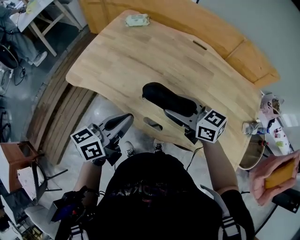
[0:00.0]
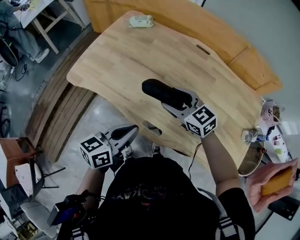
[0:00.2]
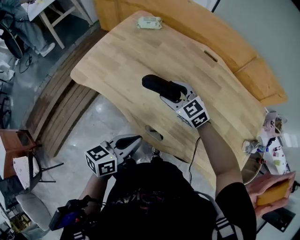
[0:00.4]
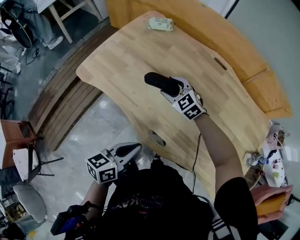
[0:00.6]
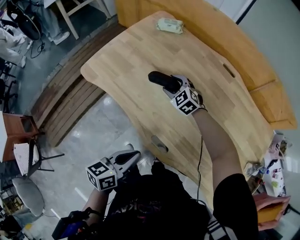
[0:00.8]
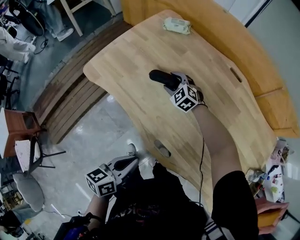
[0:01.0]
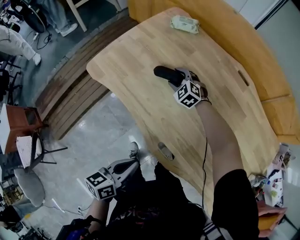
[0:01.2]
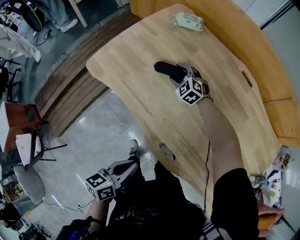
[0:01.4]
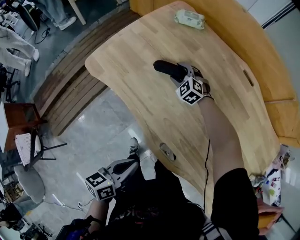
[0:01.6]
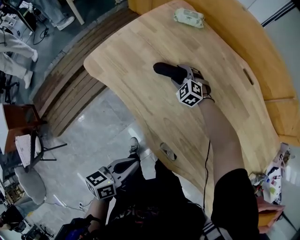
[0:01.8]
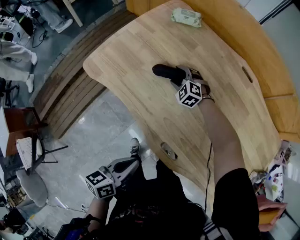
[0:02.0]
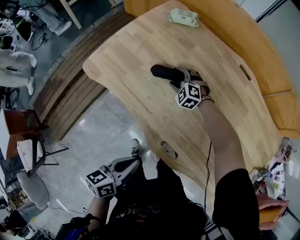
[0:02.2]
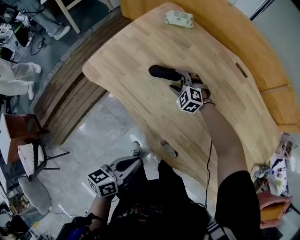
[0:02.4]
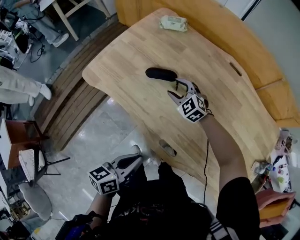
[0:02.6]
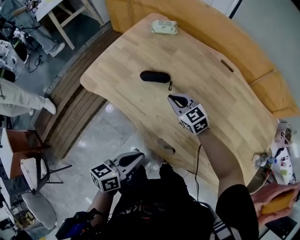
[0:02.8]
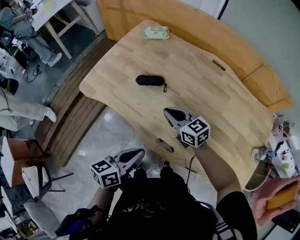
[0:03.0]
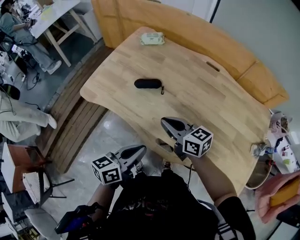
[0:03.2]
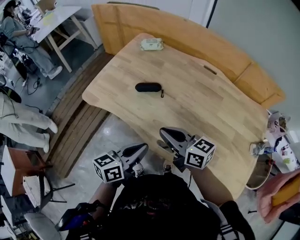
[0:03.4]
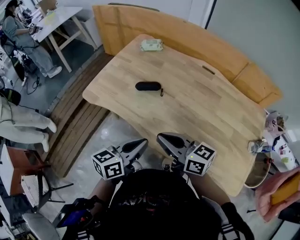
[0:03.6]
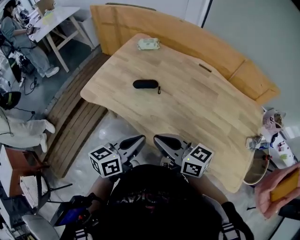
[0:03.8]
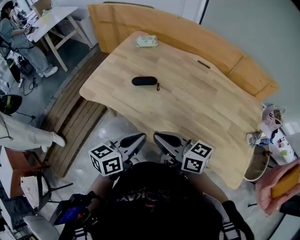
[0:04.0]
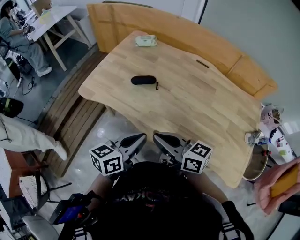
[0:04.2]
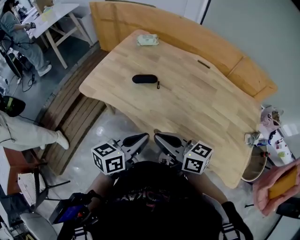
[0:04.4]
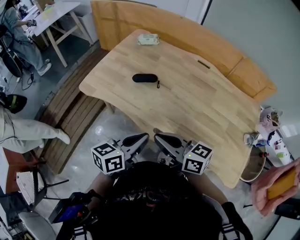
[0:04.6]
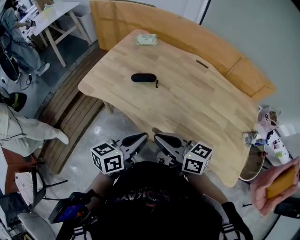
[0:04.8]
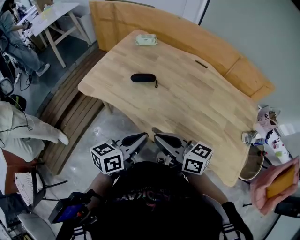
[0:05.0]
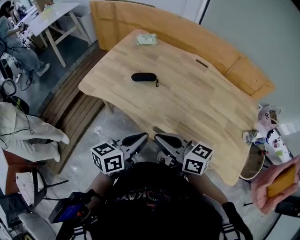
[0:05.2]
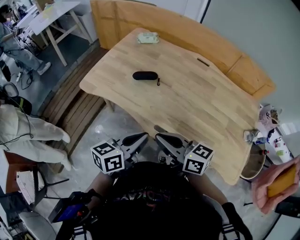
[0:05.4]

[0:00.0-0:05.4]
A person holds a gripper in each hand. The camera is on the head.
0:00.0 to 0:01.4: The right gripper is displaced forward, downward and to the left by some 40 cm, and rolls counterclockwise, seen from behind, by about 50 degrees. Meanwhile the left gripper shifts approximately 10 cm downward and backward, and turns by roughly 30 degrees.
0:01.4 to 0:02.8: The right gripper goes roughly 20 cm backward and upward, changes its angle by some 40 degrees, and closes.
0:02.8 to 0:04.0: The right gripper heads backward and upward, covering about 30 cm, and turns by approximately 40 degrees. The left gripper shifts roughly 5 cm upward.
0:04.0 to 0:05.4: The grippers stay close to where they were, moving slightly.

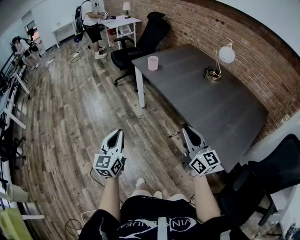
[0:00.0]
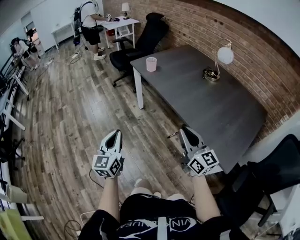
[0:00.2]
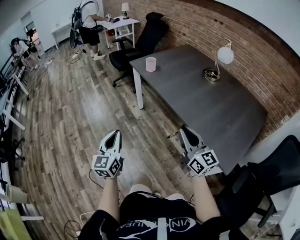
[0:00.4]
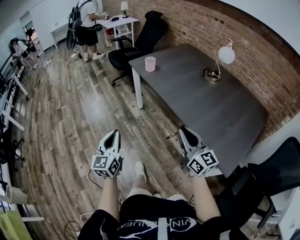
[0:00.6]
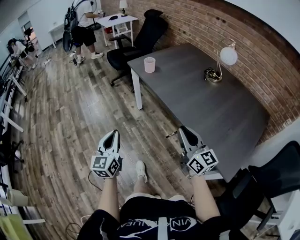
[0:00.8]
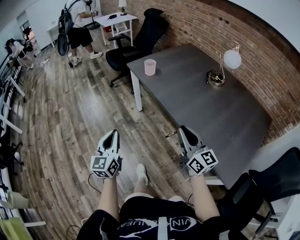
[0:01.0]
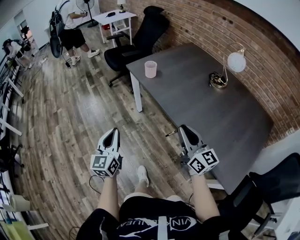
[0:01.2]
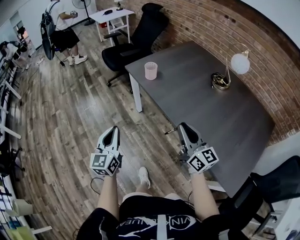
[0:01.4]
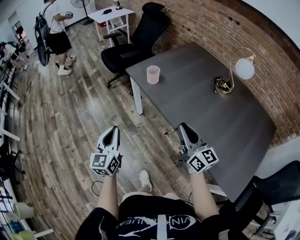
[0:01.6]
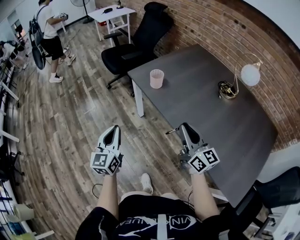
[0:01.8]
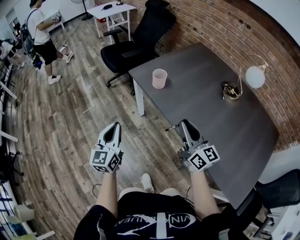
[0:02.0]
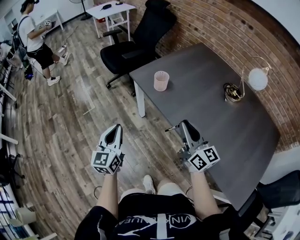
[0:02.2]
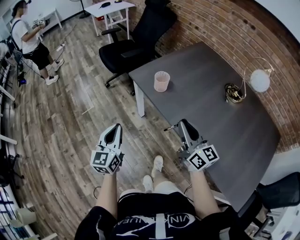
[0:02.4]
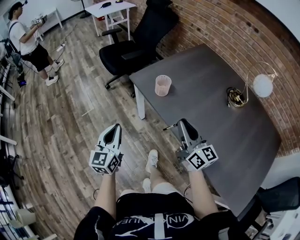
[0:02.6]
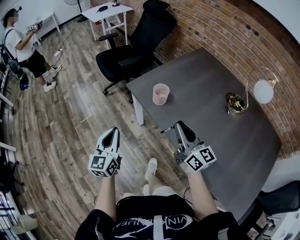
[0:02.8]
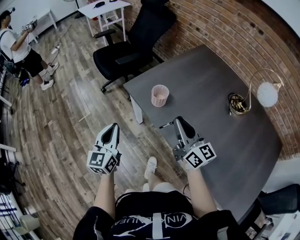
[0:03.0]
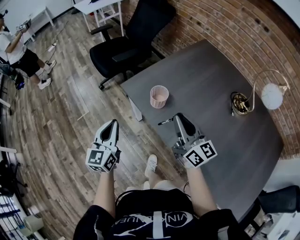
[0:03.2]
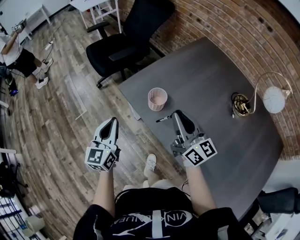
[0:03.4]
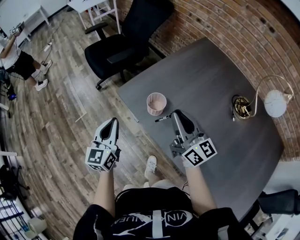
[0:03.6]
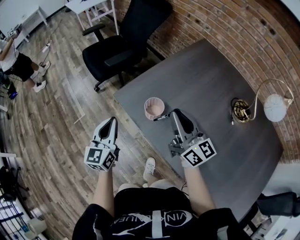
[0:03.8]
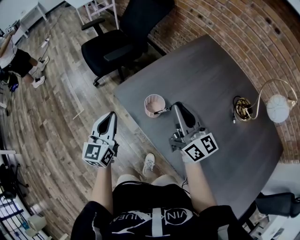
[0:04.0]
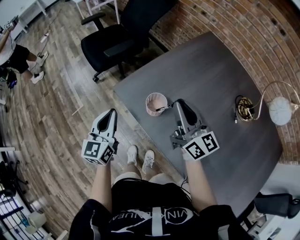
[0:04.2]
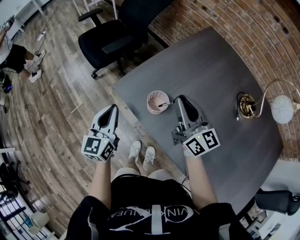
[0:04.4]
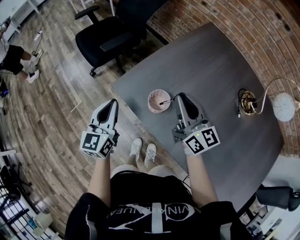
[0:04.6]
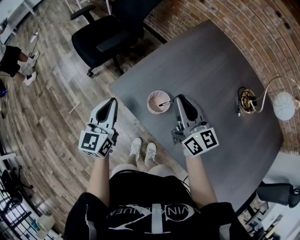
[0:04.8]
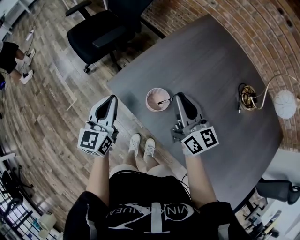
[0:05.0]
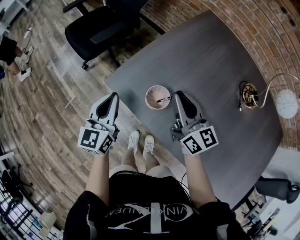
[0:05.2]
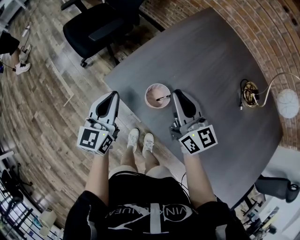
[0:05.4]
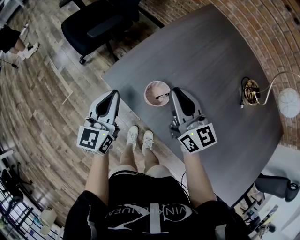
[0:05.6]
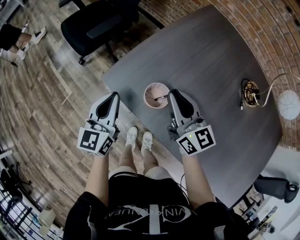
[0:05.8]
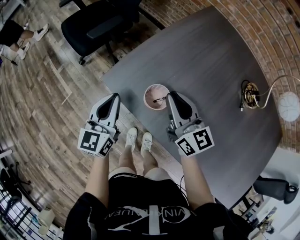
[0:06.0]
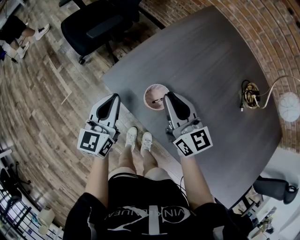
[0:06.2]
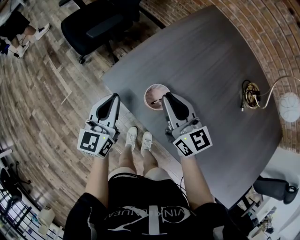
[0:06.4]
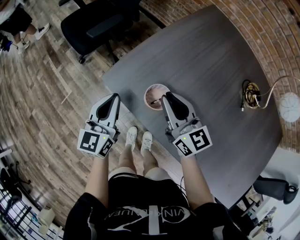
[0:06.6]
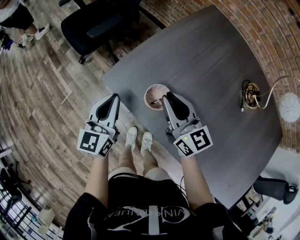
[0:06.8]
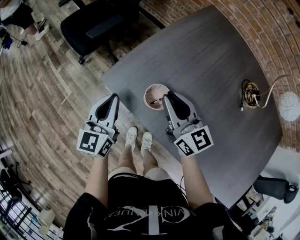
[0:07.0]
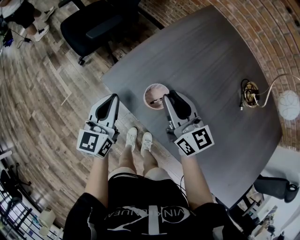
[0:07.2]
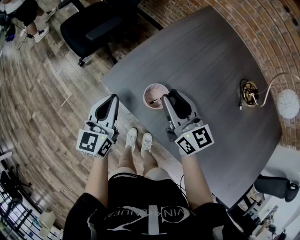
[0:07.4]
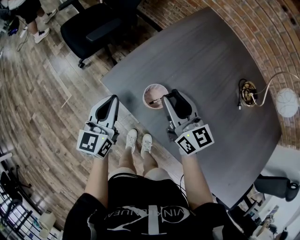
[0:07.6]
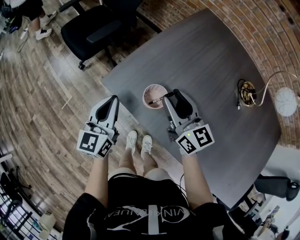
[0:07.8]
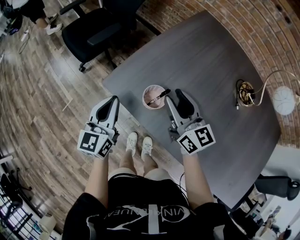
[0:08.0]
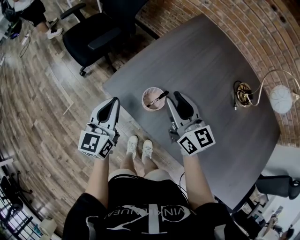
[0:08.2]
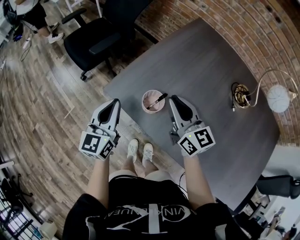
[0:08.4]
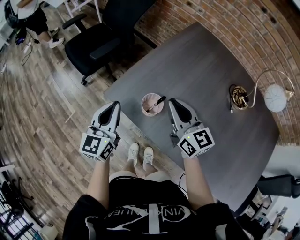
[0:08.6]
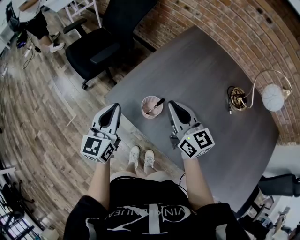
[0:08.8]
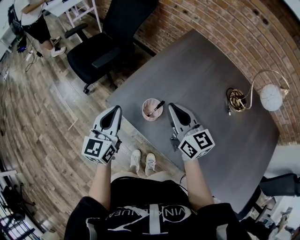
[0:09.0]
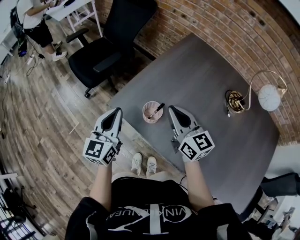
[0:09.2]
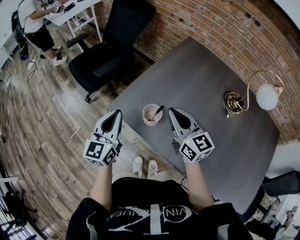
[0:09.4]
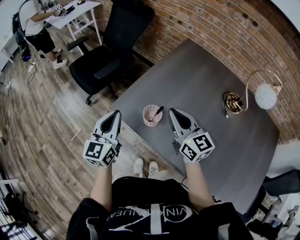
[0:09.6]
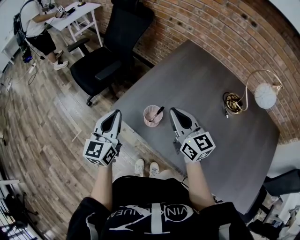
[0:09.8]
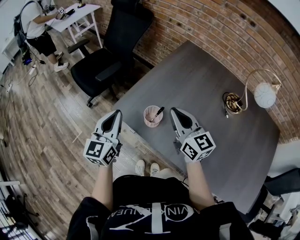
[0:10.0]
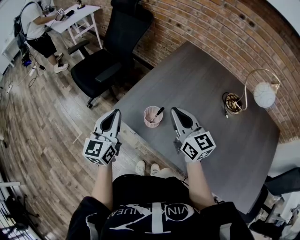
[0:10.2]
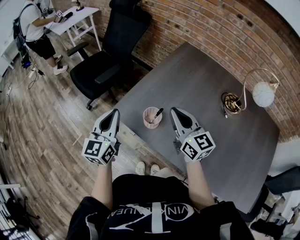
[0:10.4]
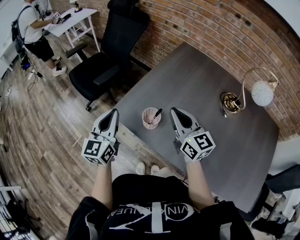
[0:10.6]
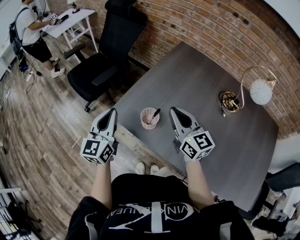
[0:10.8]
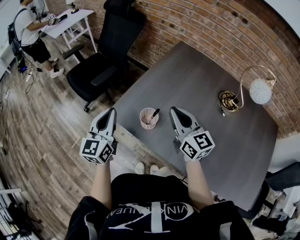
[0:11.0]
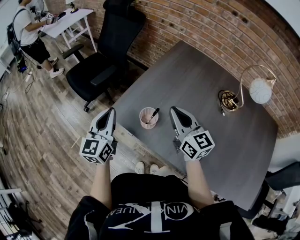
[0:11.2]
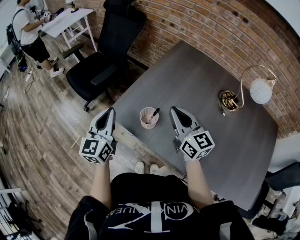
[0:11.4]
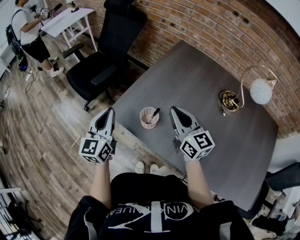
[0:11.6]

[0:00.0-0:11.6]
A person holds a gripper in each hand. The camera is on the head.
0:00.0 to 0:01.4: Both grippers travel together forward, some 25 cm.
0:01.4 to 0:02.8: The two grippers go roughly 25 cm forward.
0:02.8 to 0:04.4: Both grippers move forward, approximately 25 cm.
0:04.4 to 0:05.8: The left gripper shifts by some 5 cm, while the right gripper shifts about 5 cm downward.
0:05.8 to 0:07.2: There are only small adjustments of the grippers.
0:07.2 to 0:08.8: The grippers both shift upward by some 5 cm. The right gripper opens, then closes again.
0:08.8 to 0:10.2: The left gripper ends up roughly 5 cm from where it was.
0:10.2 to 0:11.6: The grippers make only small movements.

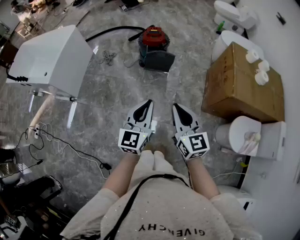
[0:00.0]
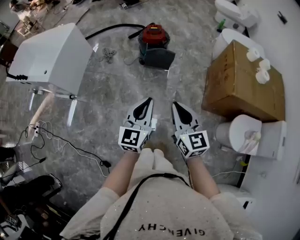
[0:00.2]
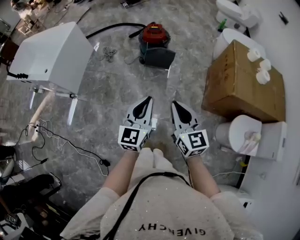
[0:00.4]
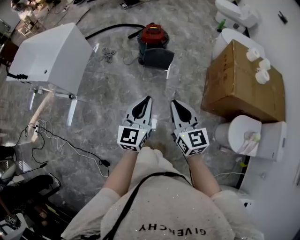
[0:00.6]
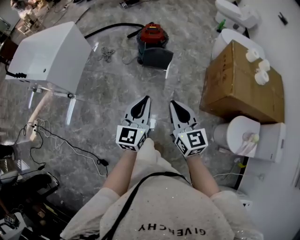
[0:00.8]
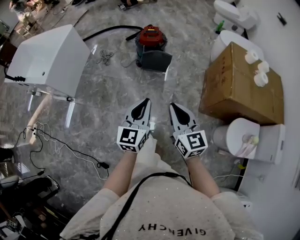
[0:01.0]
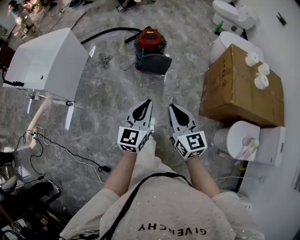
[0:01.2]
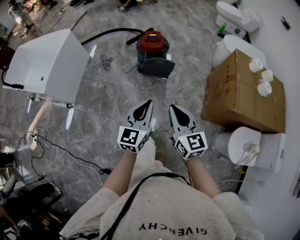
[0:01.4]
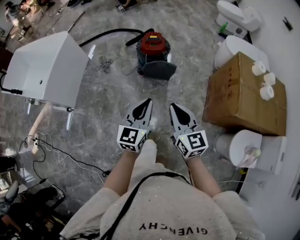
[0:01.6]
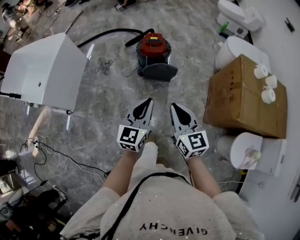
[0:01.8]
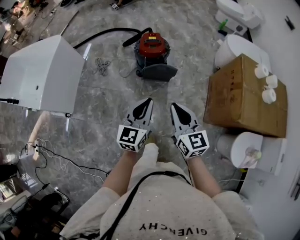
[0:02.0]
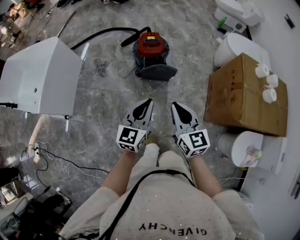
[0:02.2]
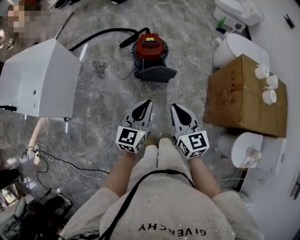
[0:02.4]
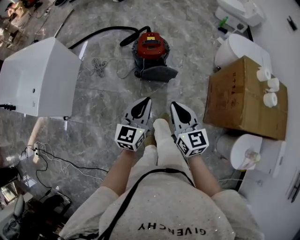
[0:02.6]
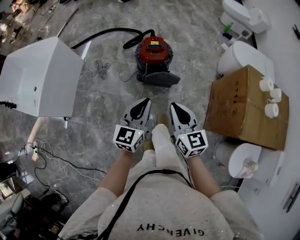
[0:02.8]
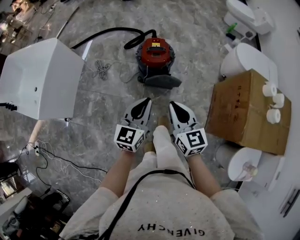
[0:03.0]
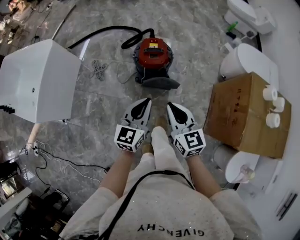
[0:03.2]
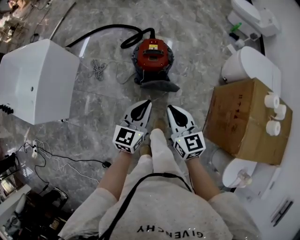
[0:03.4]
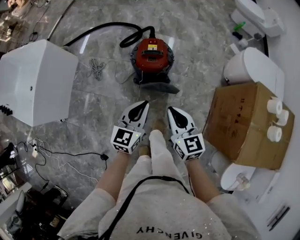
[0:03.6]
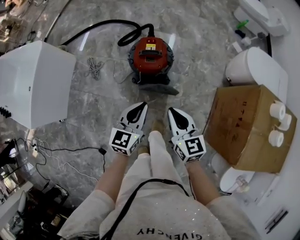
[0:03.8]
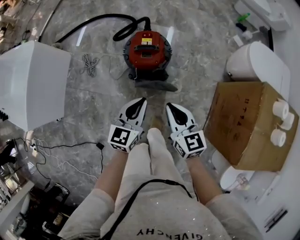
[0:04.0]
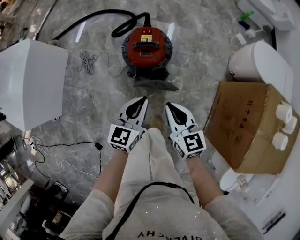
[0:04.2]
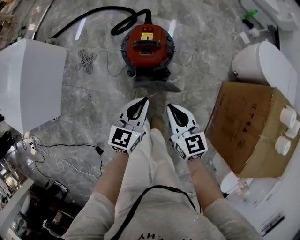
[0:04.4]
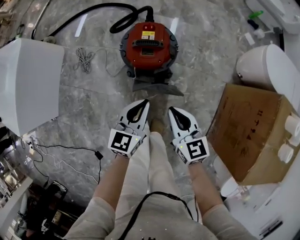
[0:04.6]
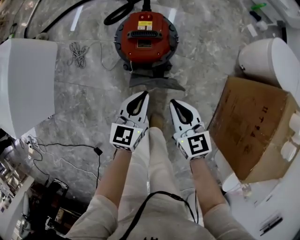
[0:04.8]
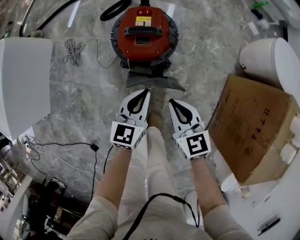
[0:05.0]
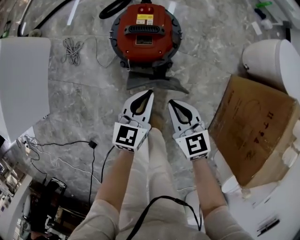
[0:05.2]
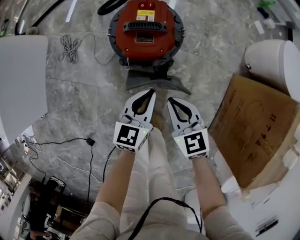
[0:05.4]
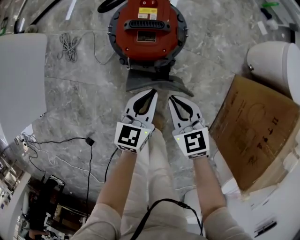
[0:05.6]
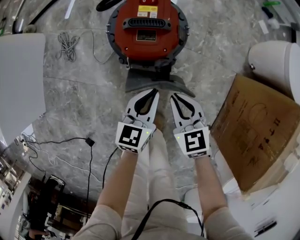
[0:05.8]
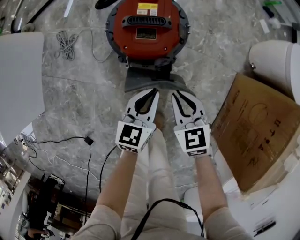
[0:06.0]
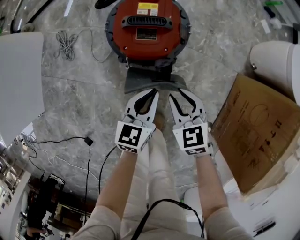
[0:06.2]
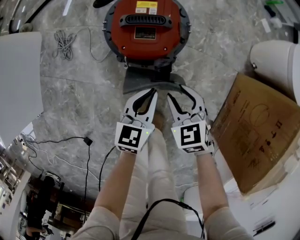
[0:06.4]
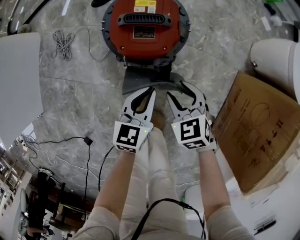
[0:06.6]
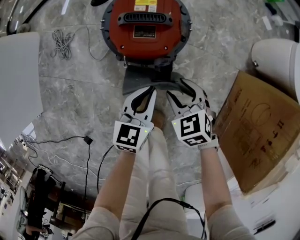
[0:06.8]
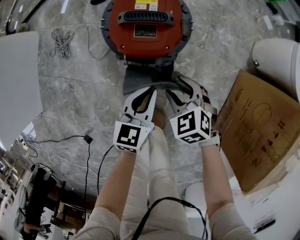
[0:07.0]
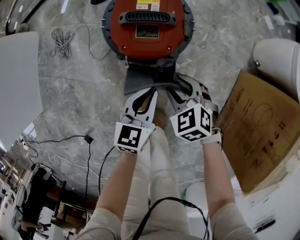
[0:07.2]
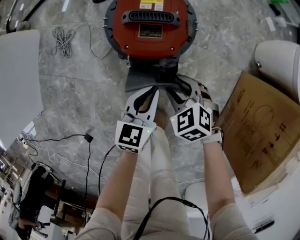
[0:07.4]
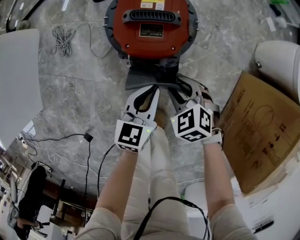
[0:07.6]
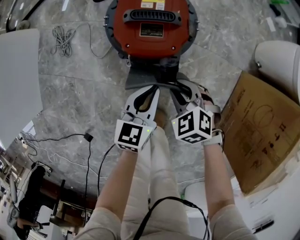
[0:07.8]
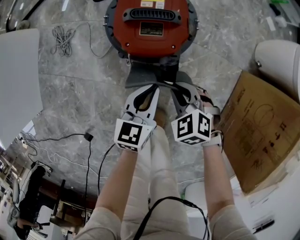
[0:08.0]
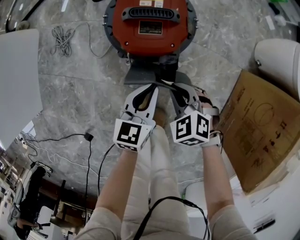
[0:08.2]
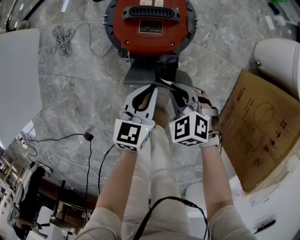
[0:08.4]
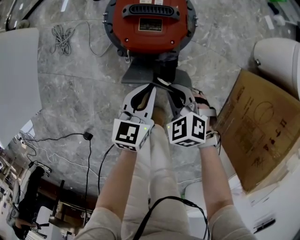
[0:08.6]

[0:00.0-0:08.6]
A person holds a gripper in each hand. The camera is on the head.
0:00.0 to 0:01.4: Both grippers travel together forward, some 10 cm.
0:01.4 to 0:02.8: The grippers both shift forward by roughly 20 cm.
0:02.8 to 0:04.4: Both grippers travel together forward and downward, about 25 cm.
0:04.4 to 0:05.8: Both grippers move downward, approximately 20 cm. The right gripper turns by some 20 degrees.
0:05.8 to 0:07.2: The right gripper heads downward, covering approximately 10 cm, changes its angle by about 30 degrees, and opens its fingers.
0:07.2 to 0:08.6: The right gripper closes up.
